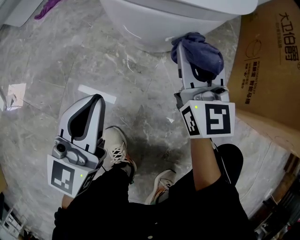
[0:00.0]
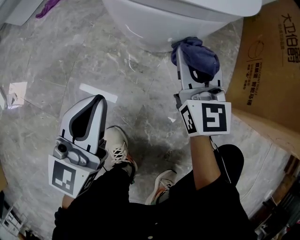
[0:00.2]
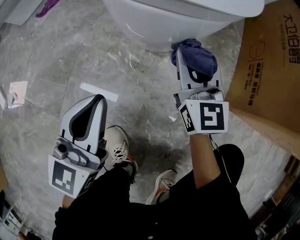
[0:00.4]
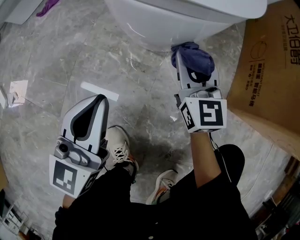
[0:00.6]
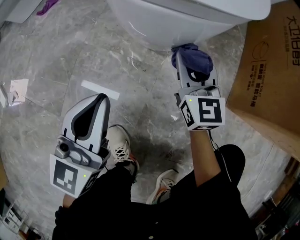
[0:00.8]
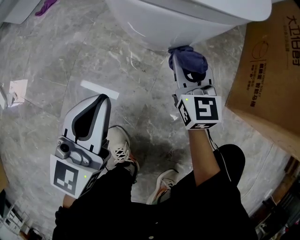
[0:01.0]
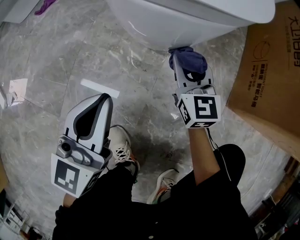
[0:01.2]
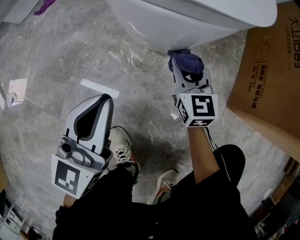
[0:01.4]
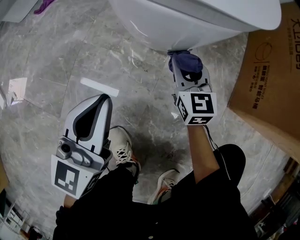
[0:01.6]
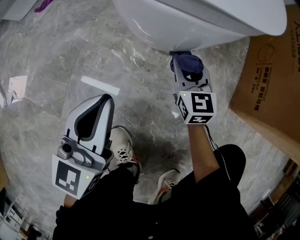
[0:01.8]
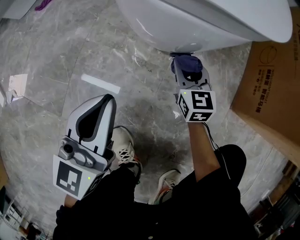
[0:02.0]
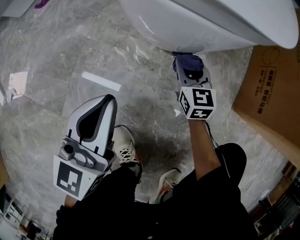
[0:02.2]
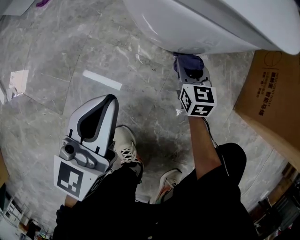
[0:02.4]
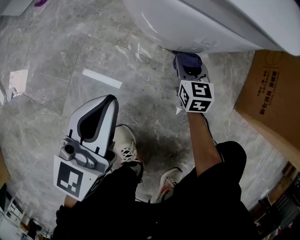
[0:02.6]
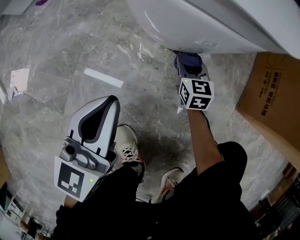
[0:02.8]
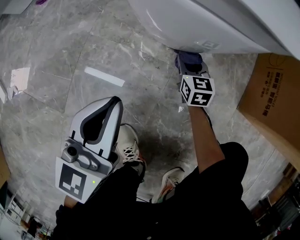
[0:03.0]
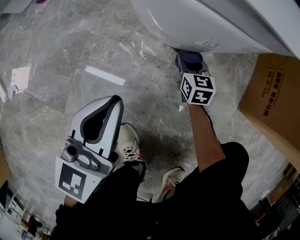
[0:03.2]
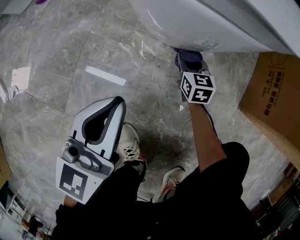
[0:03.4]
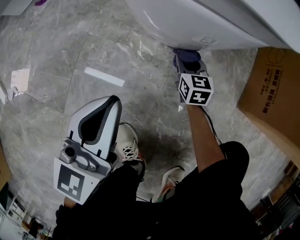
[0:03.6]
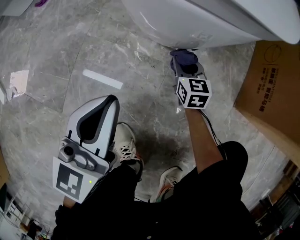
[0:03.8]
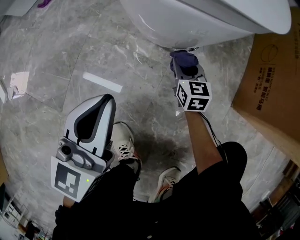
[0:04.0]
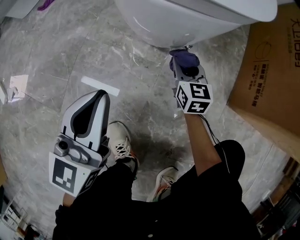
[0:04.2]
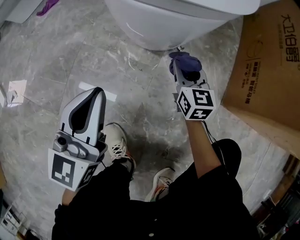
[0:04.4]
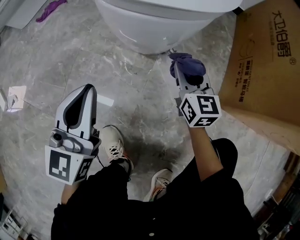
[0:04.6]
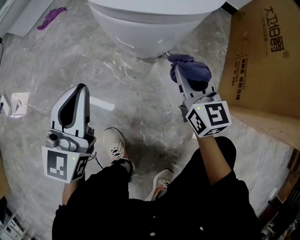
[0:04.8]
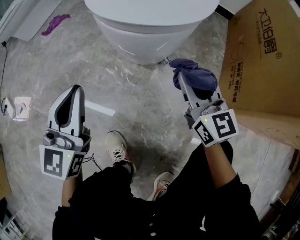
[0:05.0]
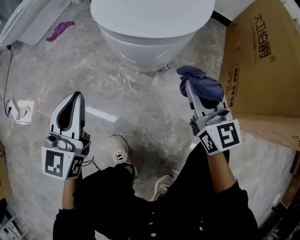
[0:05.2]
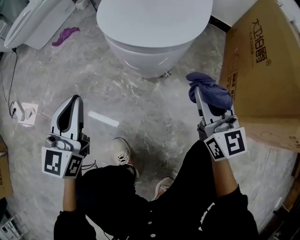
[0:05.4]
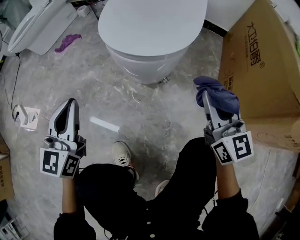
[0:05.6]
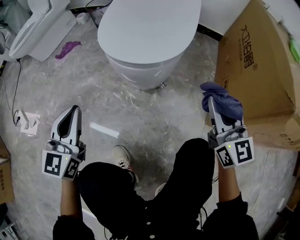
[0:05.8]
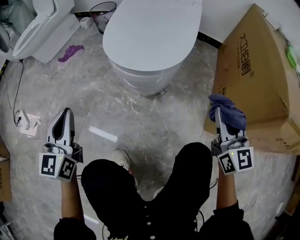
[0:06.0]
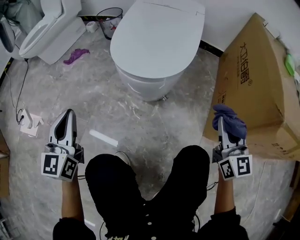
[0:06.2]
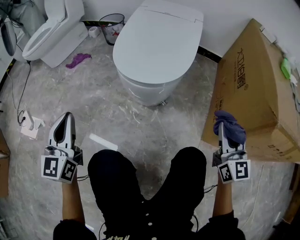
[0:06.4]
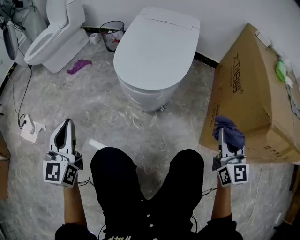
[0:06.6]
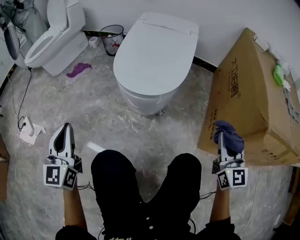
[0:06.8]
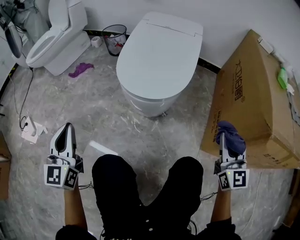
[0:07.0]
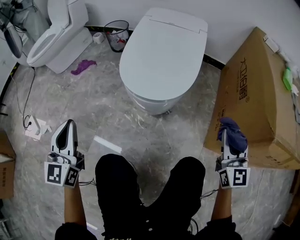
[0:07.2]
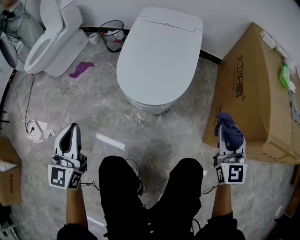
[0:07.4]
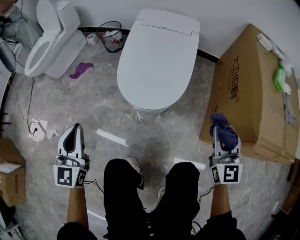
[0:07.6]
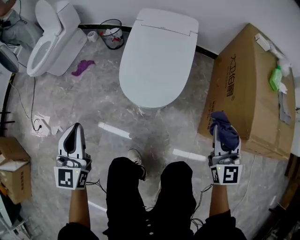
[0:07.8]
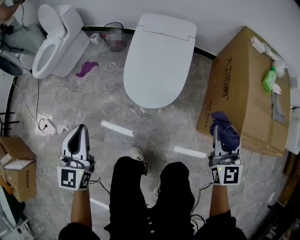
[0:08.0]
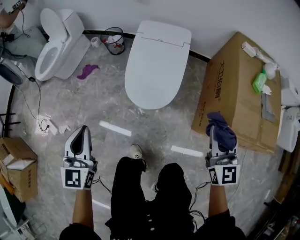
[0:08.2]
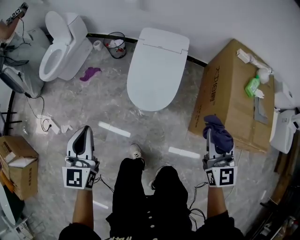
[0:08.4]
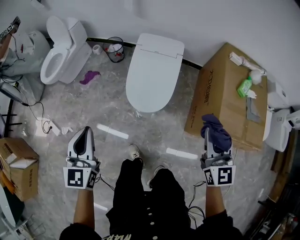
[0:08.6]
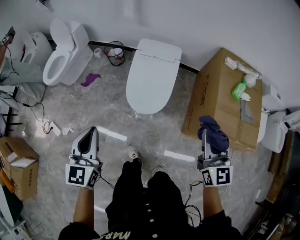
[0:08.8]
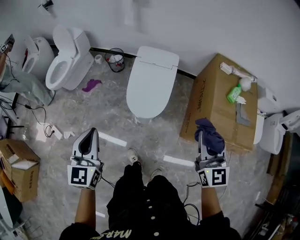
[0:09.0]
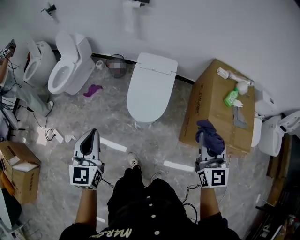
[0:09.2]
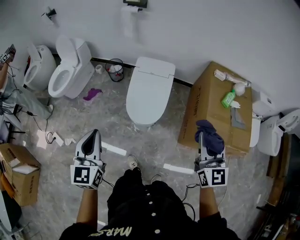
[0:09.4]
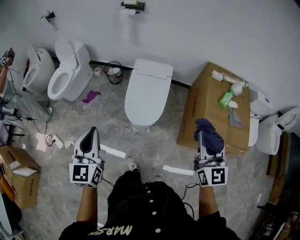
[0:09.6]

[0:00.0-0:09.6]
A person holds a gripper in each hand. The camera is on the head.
0:00.0 to 0:01.6: The right gripper moves downward, roughly 15 cm.
0:01.6 to 0:03.2: The right gripper travels downward by some 15 cm.
0:03.2 to 0:04.8: The left gripper travels upward by roughly 10 cm, while the right gripper moves upward, some 25 cm, and swivels about 20 degrees.
0:04.8 to 0:06.4: The left gripper goes approximately 20 cm upward and to the left. The right gripper shifts approximately 30 cm upward, to the right and backward.
0:06.4 to 0:08.0: Both grippers travel together upward, some 25 cm.
0:08.0 to 0:09.6: The two grippers go some 35 cm upward.

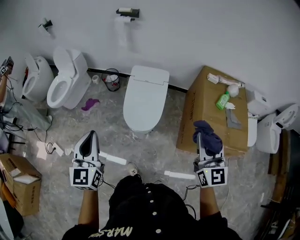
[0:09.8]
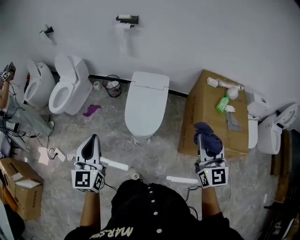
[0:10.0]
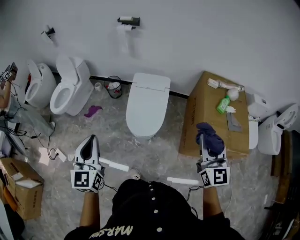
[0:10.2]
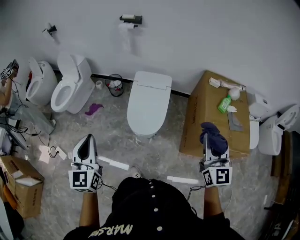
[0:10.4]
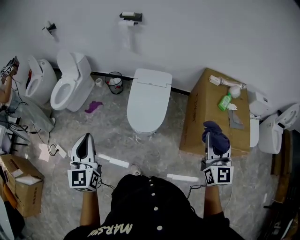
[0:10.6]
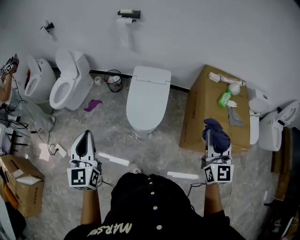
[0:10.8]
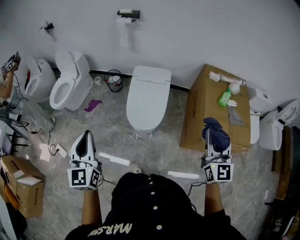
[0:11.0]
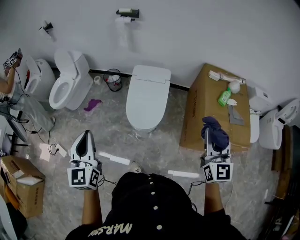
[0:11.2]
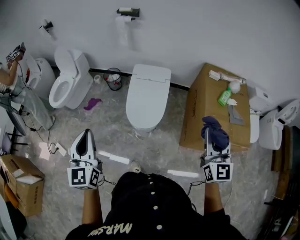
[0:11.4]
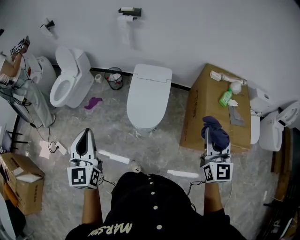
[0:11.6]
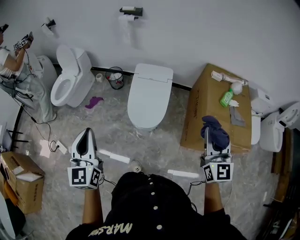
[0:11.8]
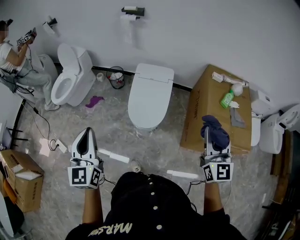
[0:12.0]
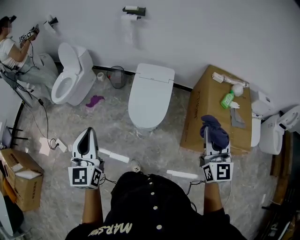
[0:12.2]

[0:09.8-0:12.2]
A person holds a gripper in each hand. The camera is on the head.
0:09.8 to 0:12.2: There are only small adjustments of the grippers.

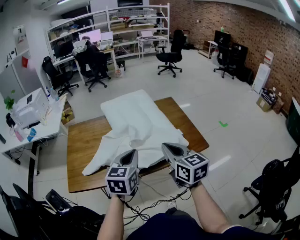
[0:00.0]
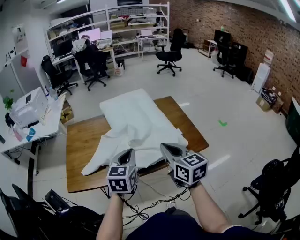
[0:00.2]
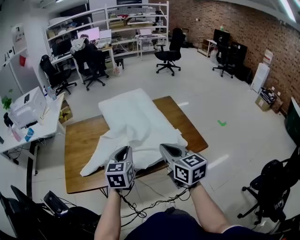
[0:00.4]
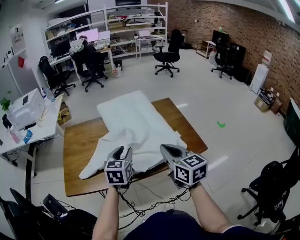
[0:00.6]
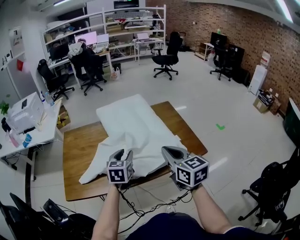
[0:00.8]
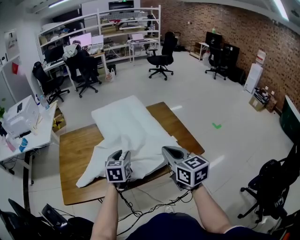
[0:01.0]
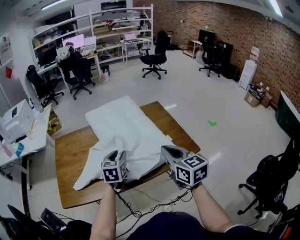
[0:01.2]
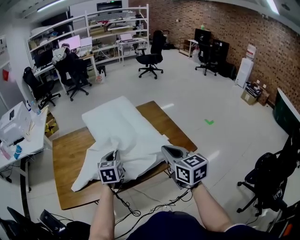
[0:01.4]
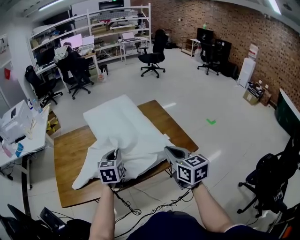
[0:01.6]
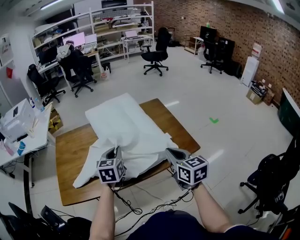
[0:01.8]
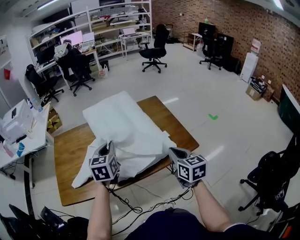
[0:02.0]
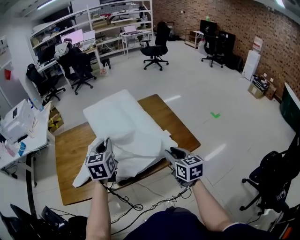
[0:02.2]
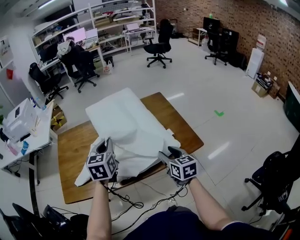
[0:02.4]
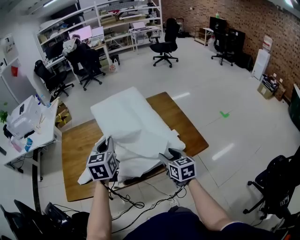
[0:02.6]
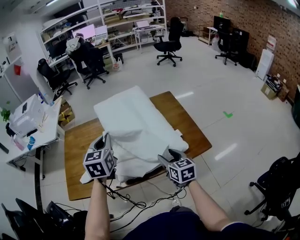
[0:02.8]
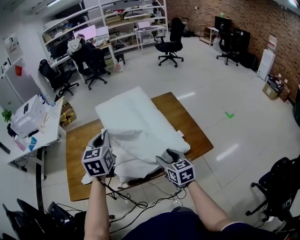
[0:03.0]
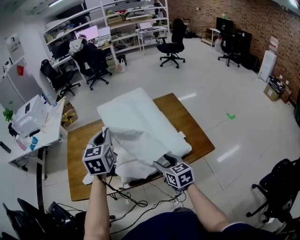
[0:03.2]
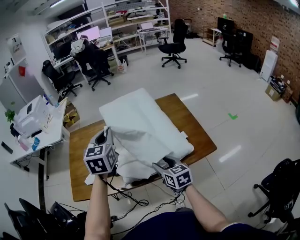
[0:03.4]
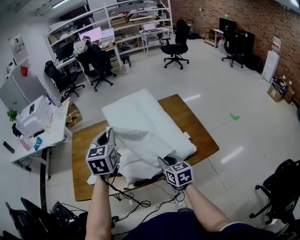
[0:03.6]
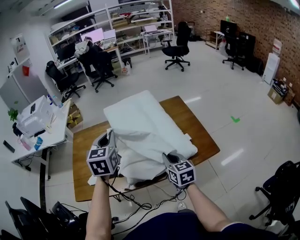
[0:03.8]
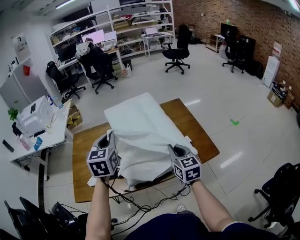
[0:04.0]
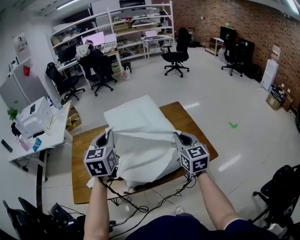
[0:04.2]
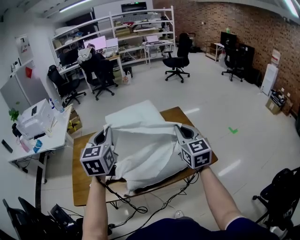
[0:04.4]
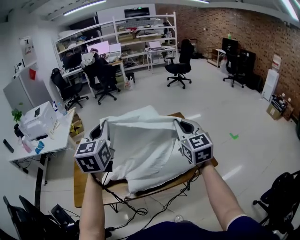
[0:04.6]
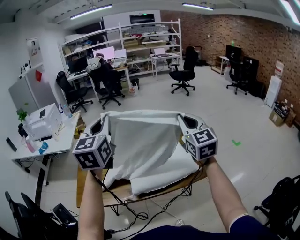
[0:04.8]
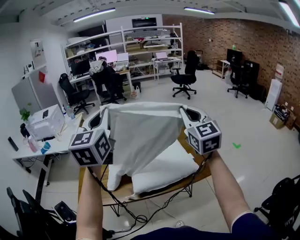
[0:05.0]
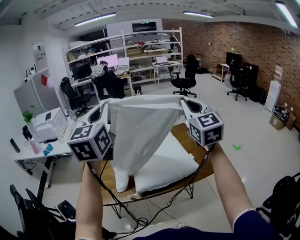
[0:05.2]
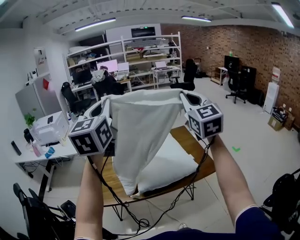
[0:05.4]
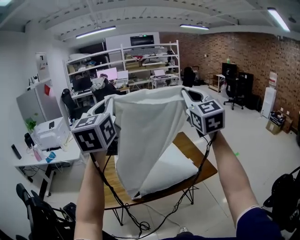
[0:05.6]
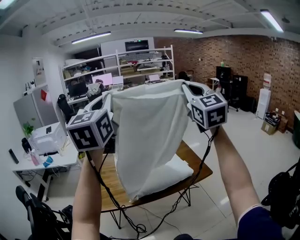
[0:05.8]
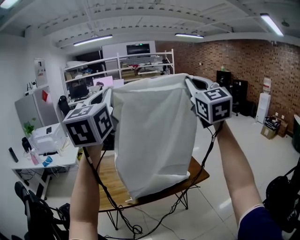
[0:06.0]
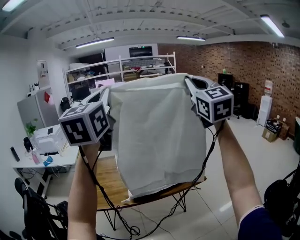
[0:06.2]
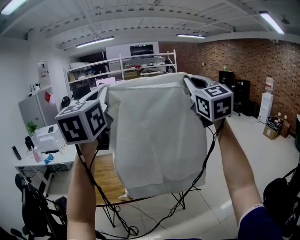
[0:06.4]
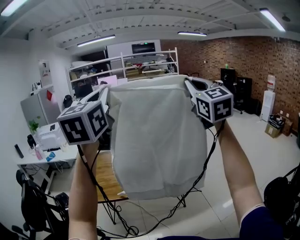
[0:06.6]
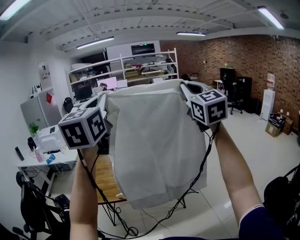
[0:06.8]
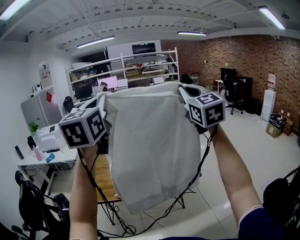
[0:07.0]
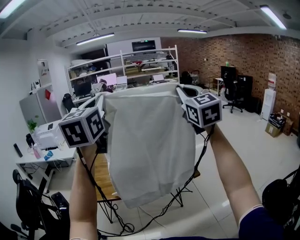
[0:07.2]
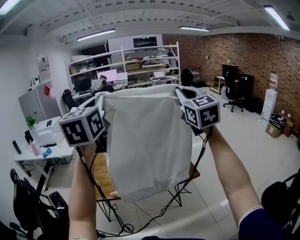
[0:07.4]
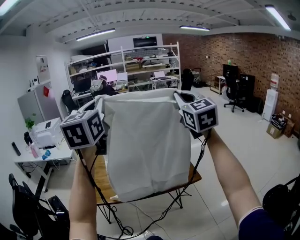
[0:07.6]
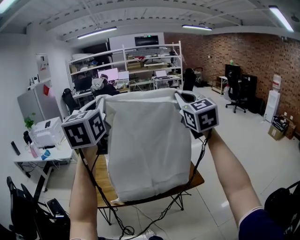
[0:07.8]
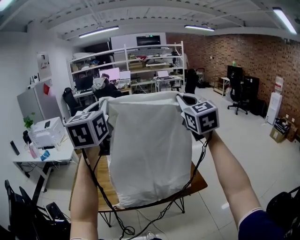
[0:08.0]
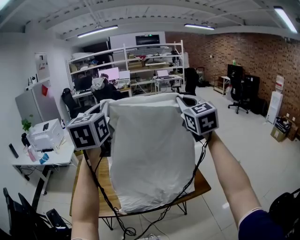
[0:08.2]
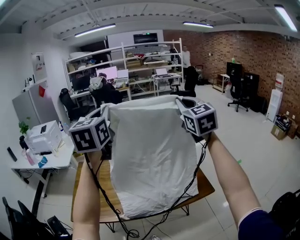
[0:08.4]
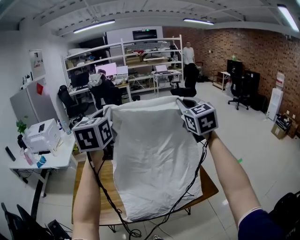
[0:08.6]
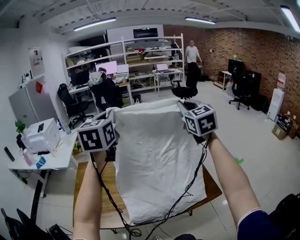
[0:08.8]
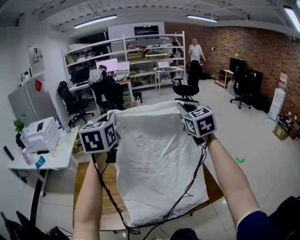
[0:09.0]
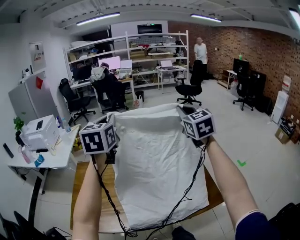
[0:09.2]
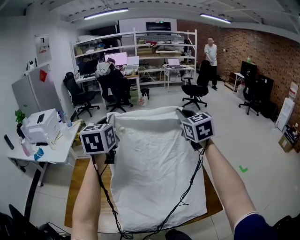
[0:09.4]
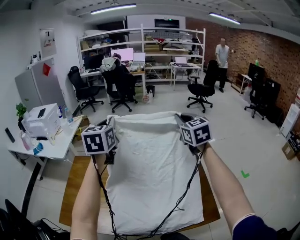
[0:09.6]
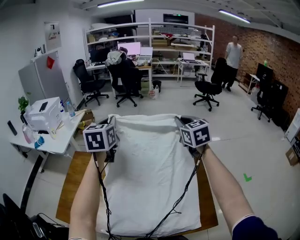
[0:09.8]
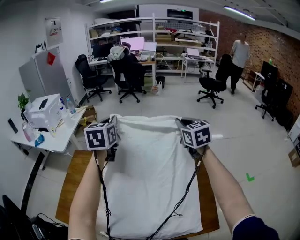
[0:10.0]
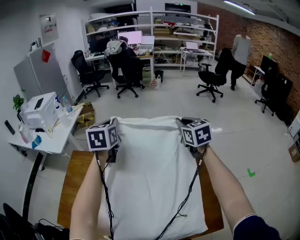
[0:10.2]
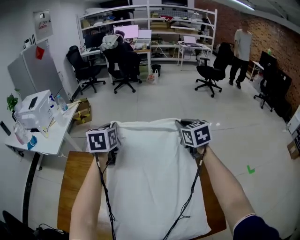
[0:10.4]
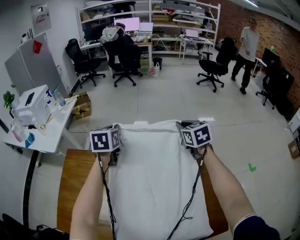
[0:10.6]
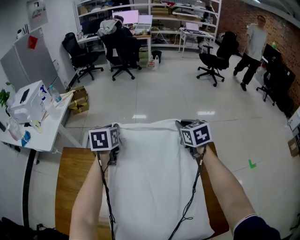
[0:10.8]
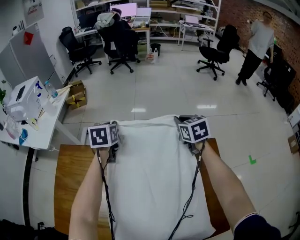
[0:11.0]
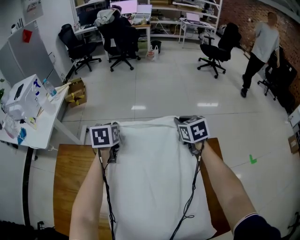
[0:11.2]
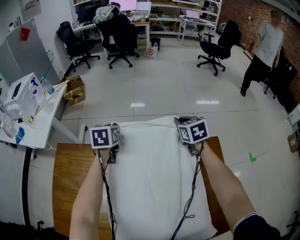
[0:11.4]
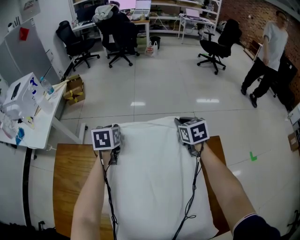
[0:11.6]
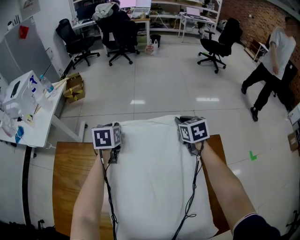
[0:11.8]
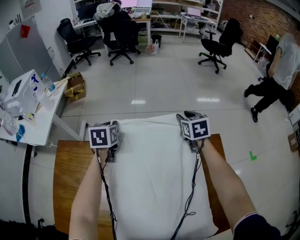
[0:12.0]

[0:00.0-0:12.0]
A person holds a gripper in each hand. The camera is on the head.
0:00.0 to 0:01.6: The right gripper is displaced to the right by about 10 cm, while the left gripper goes approximately 15 cm forward and downward, and opens and closes again.
0:01.6 to 0:03.0: The right gripper travels downward and forward by some 15 cm, and opens, while the left gripper is displaced upward and to the left by some 15 cm.
0:03.0 to 0:04.4: The right gripper travels upward by approximately 20 cm, rotates roughly 30 degrees, and closes, while the left gripper goes about 10 cm upward.
0:04.4 to 0:06.0: The right gripper goes roughly 40 cm upward, and turns by approximately 30 degrees. Meanwhile the left gripper is displaced upward and backward by roughly 35 cm, and rotates roughly 30 degrees.
0:06.0 to 0:07.6: The right gripper shifts about 15 cm downward, forward and to the right; the left gripper is displaced to the right and downward by roughly 10 cm.
0:07.6 to 0:09.0: The left gripper moves forward and downward, roughly 30 cm, while the right gripper travels forward by approximately 25 cm.
0:09.0 to 0:10.4: The left gripper is displaced downward and forward by approximately 35 cm, and swivels about 20 degrees. Meanwhile the right gripper travels forward and downward by approximately 35 cm, and rotates about 30 degrees.
0:10.4 to 0:12.0: The left gripper shifts about 15 cm downward, while the right gripper shifts about 15 cm downward and forward, and opens its fingers.
